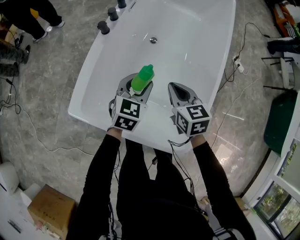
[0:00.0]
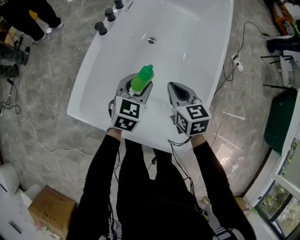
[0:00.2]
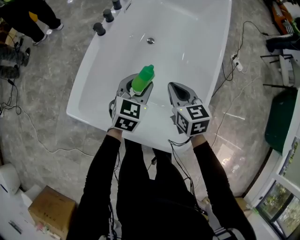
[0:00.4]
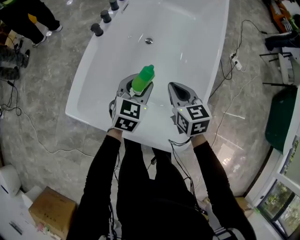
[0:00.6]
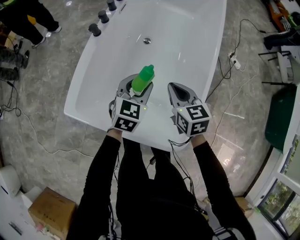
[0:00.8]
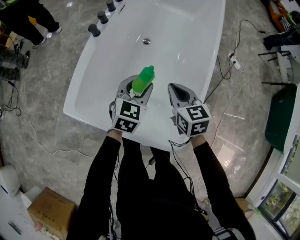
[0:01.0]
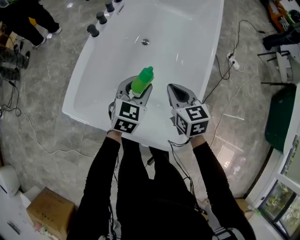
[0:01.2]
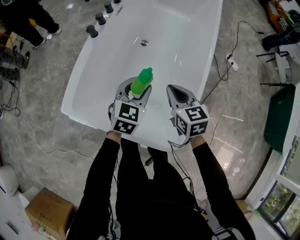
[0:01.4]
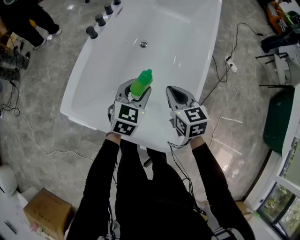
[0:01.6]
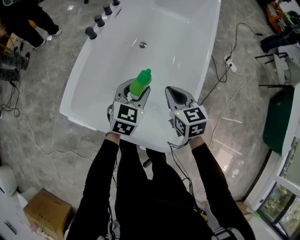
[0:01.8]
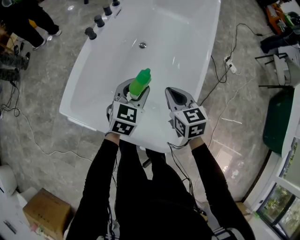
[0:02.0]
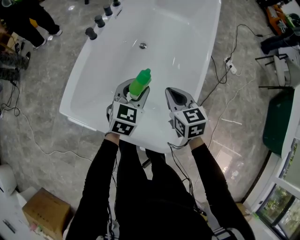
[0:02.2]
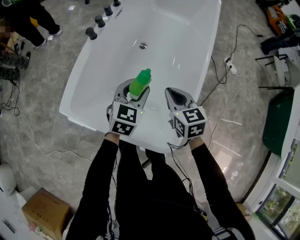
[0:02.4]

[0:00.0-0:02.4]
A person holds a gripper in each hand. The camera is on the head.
0:00.0 to 0:01.2: The two grippers go approximately 5 cm to the right.
0:01.2 to 0:02.4: The grippers stay close to where they were, moving slightly.

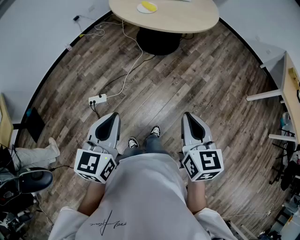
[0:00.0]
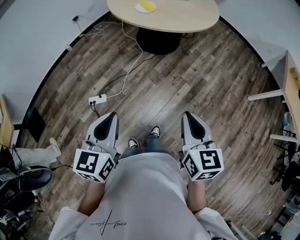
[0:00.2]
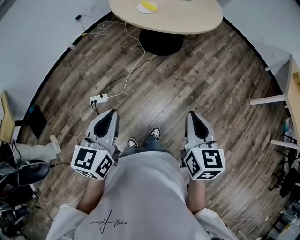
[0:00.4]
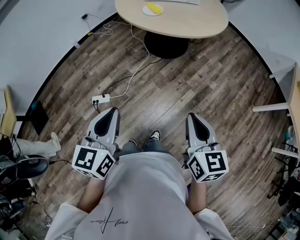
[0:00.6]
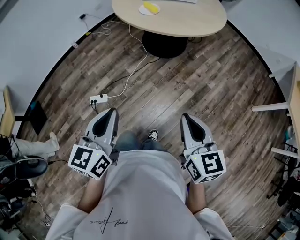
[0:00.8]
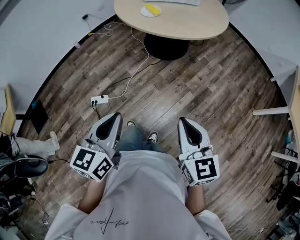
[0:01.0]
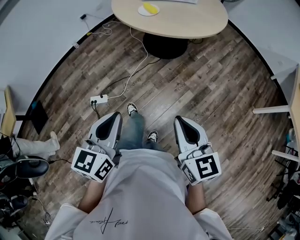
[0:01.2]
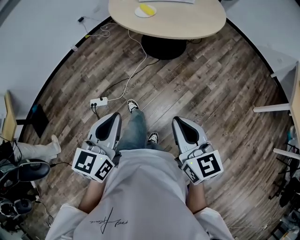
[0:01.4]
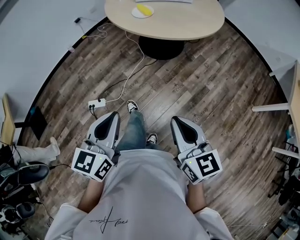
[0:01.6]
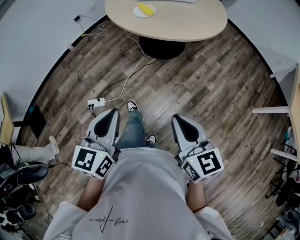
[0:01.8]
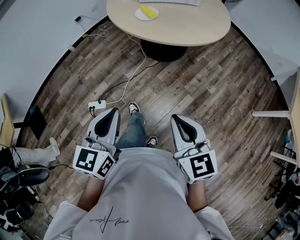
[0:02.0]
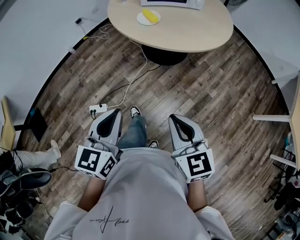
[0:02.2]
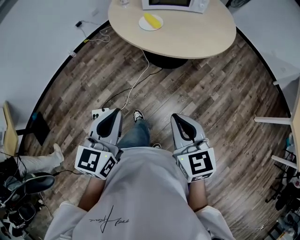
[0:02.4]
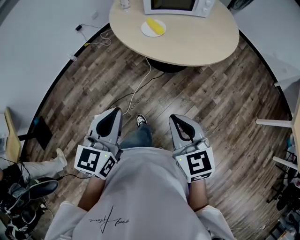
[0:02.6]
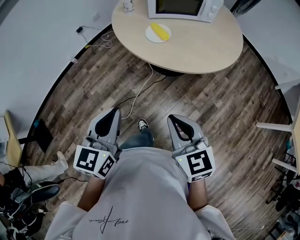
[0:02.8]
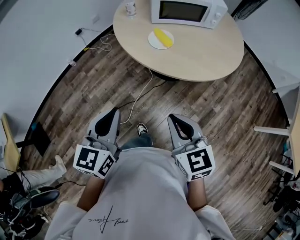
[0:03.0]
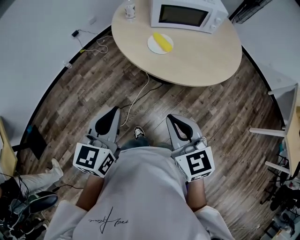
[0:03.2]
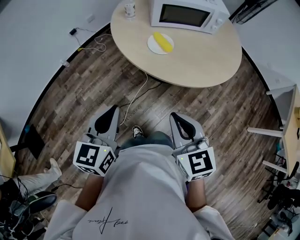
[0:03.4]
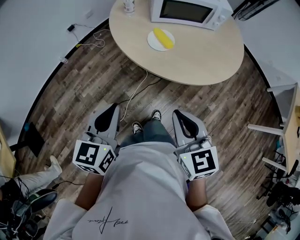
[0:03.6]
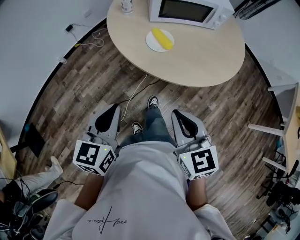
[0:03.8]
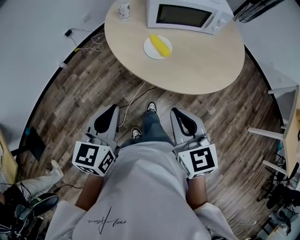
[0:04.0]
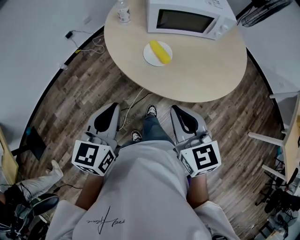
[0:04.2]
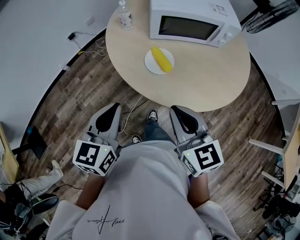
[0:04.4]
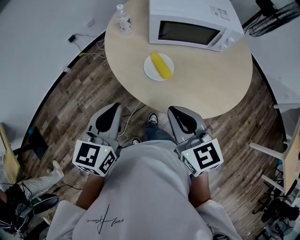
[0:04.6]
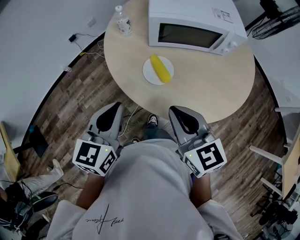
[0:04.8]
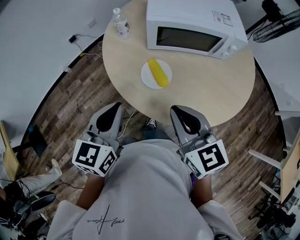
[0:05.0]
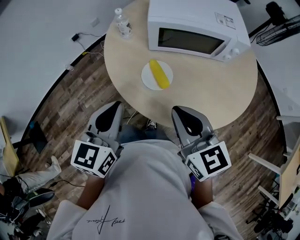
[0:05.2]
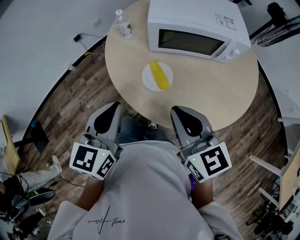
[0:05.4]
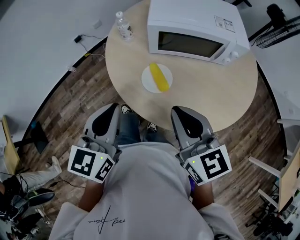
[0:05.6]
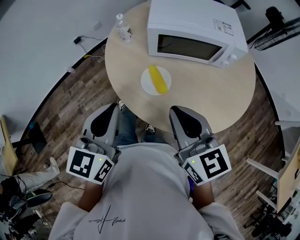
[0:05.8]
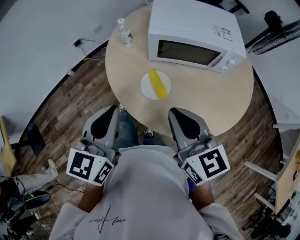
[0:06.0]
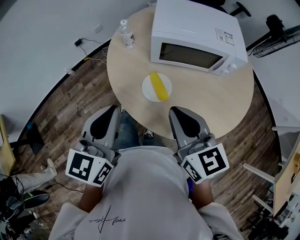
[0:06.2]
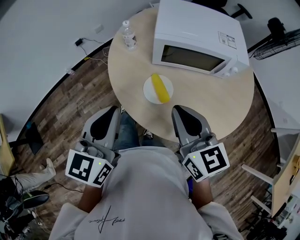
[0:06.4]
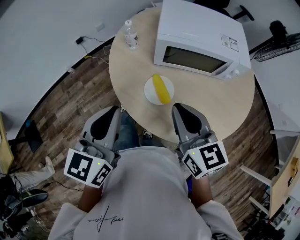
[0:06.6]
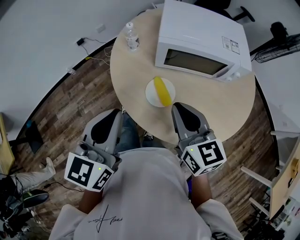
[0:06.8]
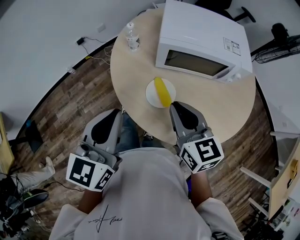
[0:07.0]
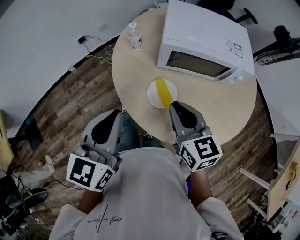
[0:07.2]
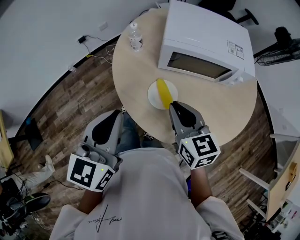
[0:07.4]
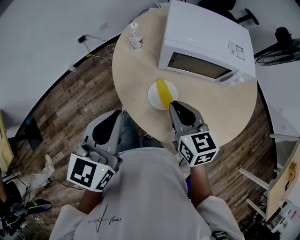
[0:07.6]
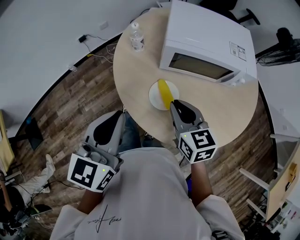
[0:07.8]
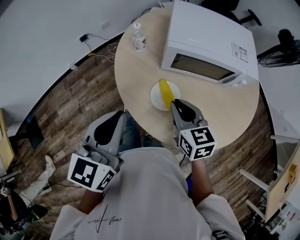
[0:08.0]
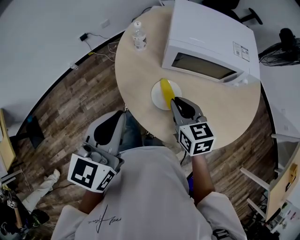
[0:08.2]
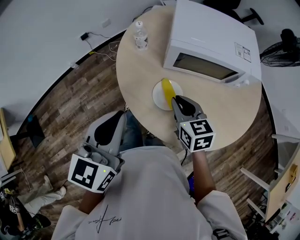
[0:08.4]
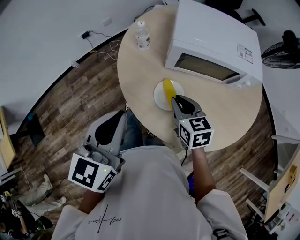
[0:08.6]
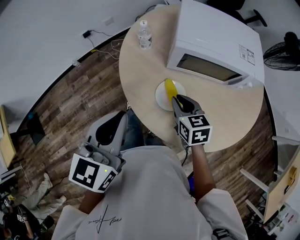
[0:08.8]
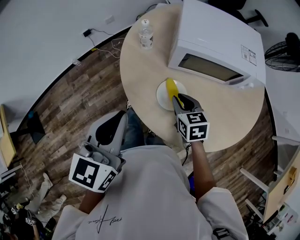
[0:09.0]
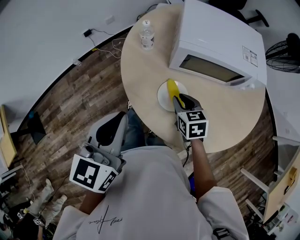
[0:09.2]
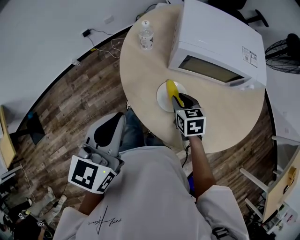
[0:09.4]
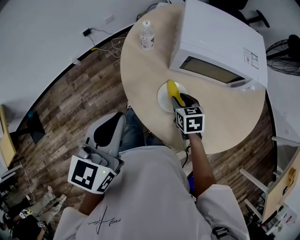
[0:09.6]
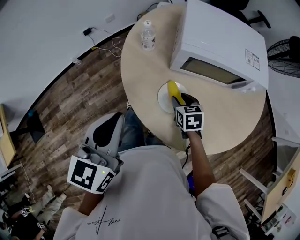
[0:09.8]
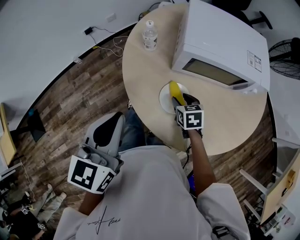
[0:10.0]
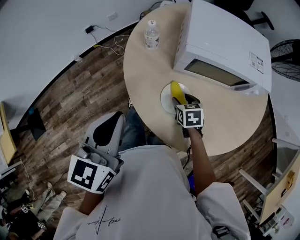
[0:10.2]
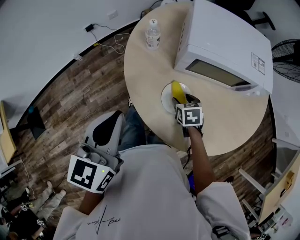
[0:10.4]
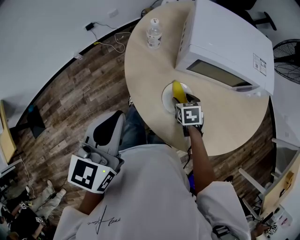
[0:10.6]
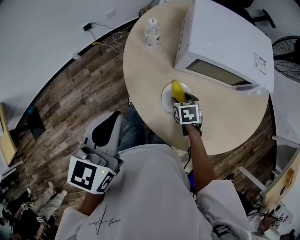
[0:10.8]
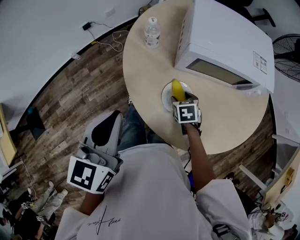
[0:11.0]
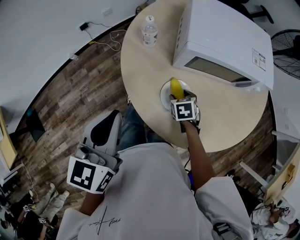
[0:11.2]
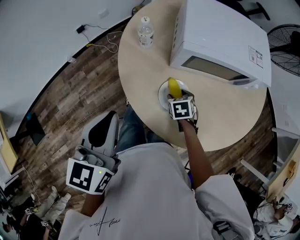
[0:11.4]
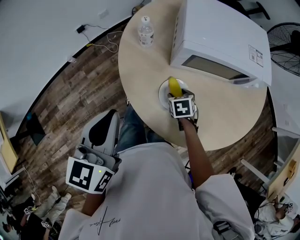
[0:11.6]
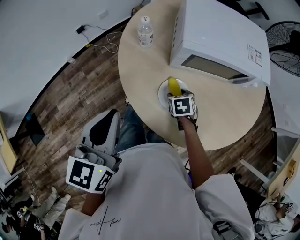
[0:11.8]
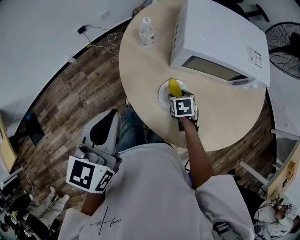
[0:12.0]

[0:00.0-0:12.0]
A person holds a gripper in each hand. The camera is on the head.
0:00.0 to 0:01.6: The two grippers go some 10 cm forward and to the right.
0:01.6 to 0:03.0: The left gripper travels forward by about 30 cm. Meanwhile the right gripper moves forward and to the left, some 35 cm.
0:03.0 to 0:04.4: Both grippers move forward, roughly 20 cm.
0:04.4 to 0:06.0: The right gripper is displaced forward and to the right by about 10 cm, while the left gripper travels forward, to the right and upward by about 10 cm.
0:06.0 to 0:07.6: The left gripper moves approximately 5 cm. Meanwhile the right gripper travels forward and downward by roughly 10 cm.
0:07.6 to 0:09.0: The right gripper goes approximately 10 cm downward.
0:09.0 to 0:10.4: The right gripper shifts approximately 10 cm downward, and opens.
0:10.4 to 0:12.0: The grippers move only a little.

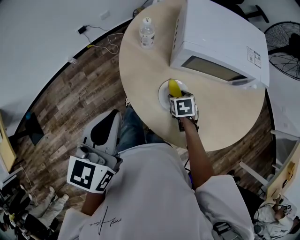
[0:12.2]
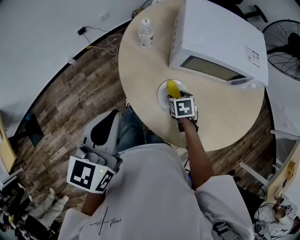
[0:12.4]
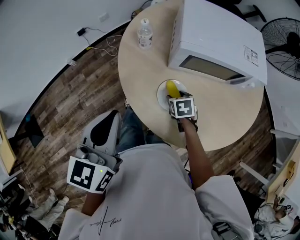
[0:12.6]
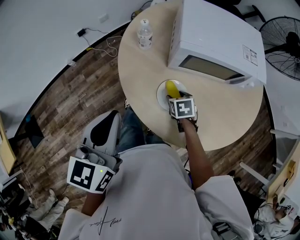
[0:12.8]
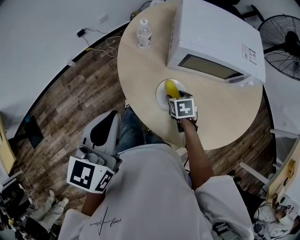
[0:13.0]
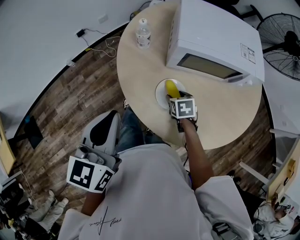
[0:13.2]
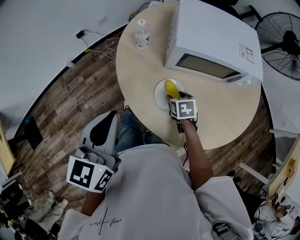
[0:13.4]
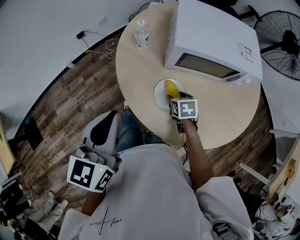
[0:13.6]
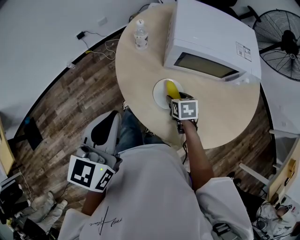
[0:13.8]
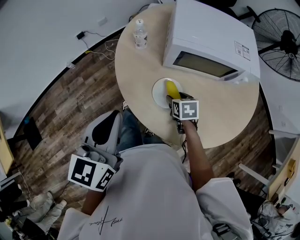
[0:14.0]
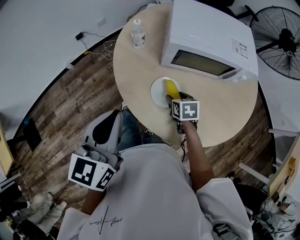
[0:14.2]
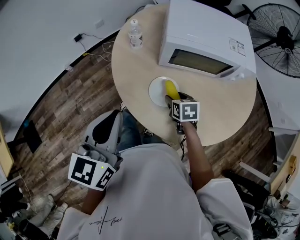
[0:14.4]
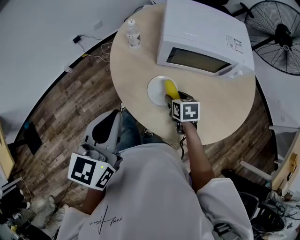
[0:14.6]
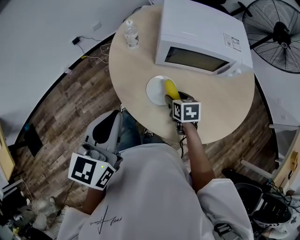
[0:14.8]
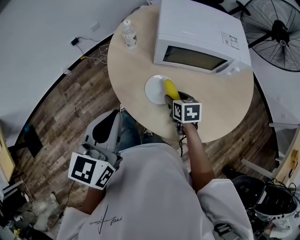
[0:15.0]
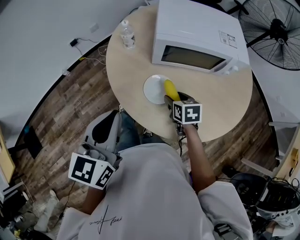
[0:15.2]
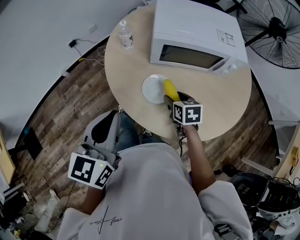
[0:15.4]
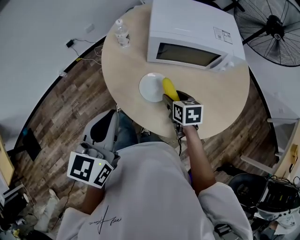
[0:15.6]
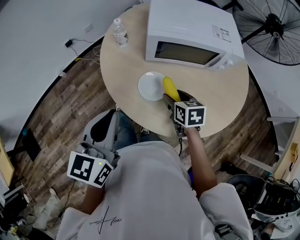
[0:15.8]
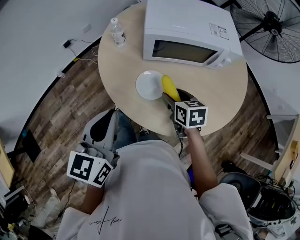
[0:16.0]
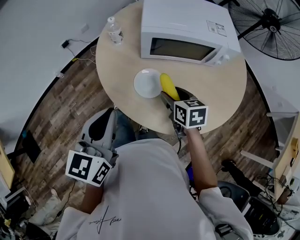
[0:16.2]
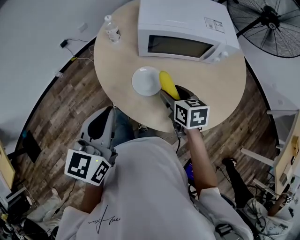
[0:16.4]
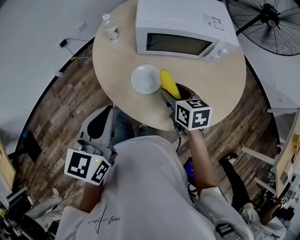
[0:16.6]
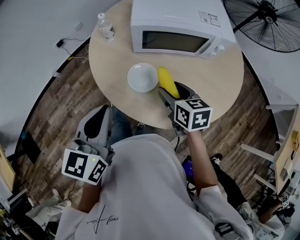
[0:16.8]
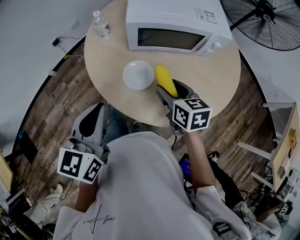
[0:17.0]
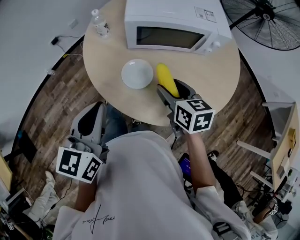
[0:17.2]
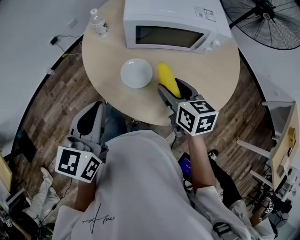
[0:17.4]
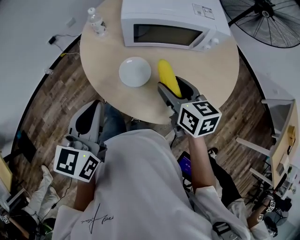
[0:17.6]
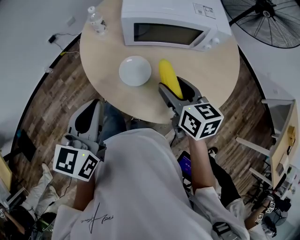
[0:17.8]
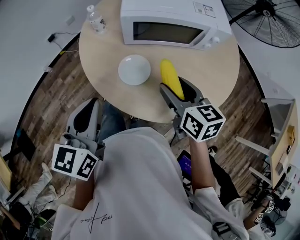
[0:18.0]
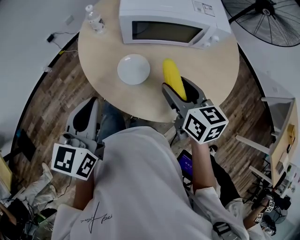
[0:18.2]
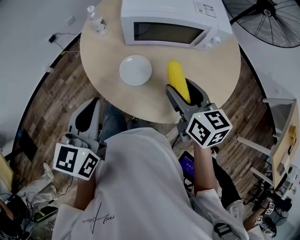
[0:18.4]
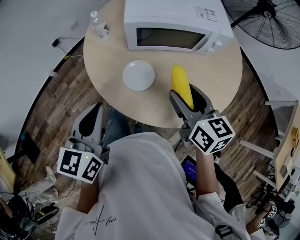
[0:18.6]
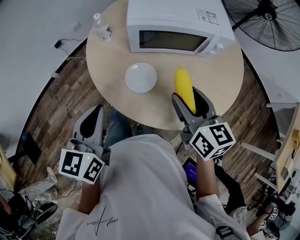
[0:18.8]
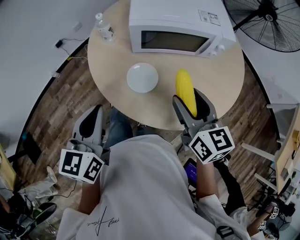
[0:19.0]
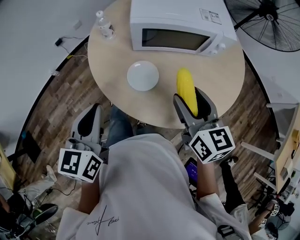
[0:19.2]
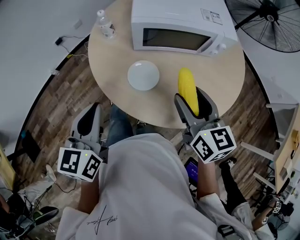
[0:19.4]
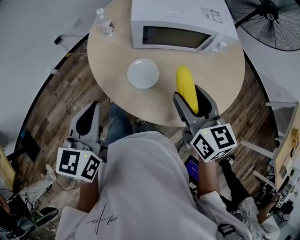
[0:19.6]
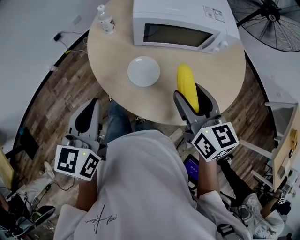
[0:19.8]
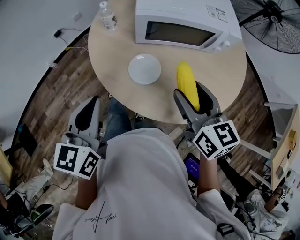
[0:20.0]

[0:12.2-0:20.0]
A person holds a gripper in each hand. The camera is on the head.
0:12.2 to 0:13.8: There are only small adjustments of the grippers.
0:13.8 to 0:15.4: The right gripper changes place by some 5 cm. The left gripper moves some 5 cm.
0:15.4 to 0:16.8: The right gripper goes some 10 cm upward.
0:16.8 to 0:18.4: The right gripper is displaced upward by roughly 5 cm.
0:18.4 to 0:20.0: The grippers stay close to where they were, moving slightly.

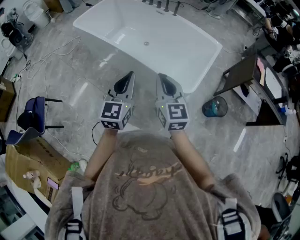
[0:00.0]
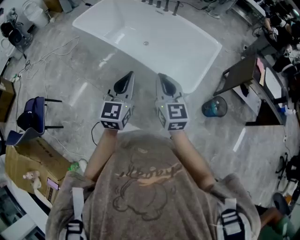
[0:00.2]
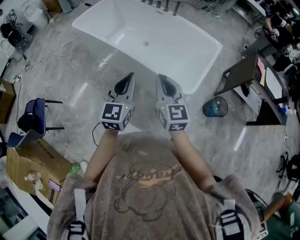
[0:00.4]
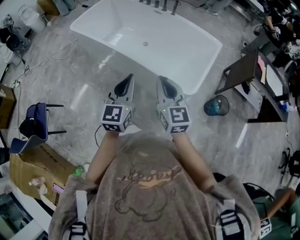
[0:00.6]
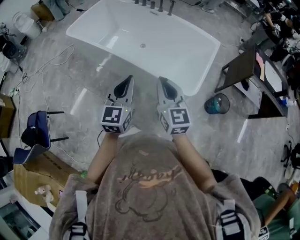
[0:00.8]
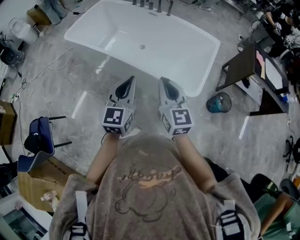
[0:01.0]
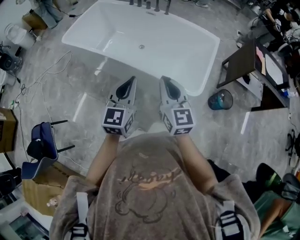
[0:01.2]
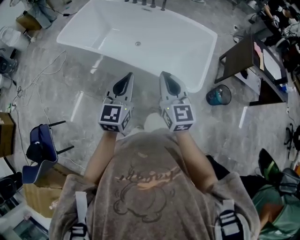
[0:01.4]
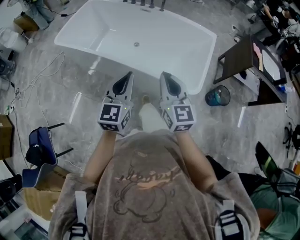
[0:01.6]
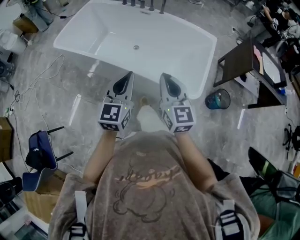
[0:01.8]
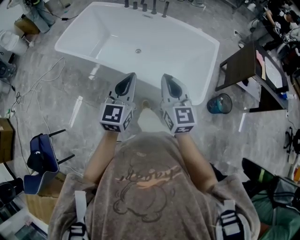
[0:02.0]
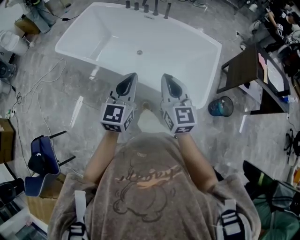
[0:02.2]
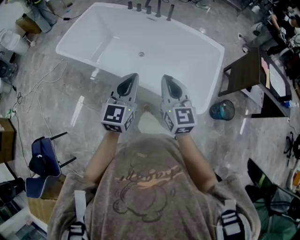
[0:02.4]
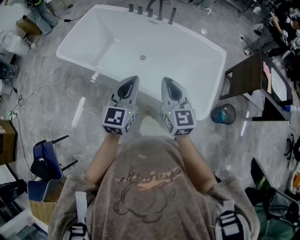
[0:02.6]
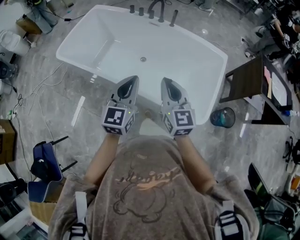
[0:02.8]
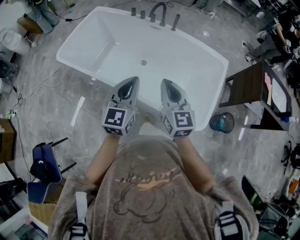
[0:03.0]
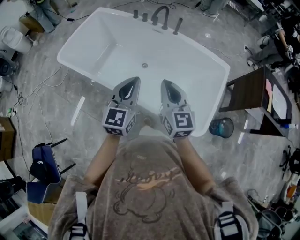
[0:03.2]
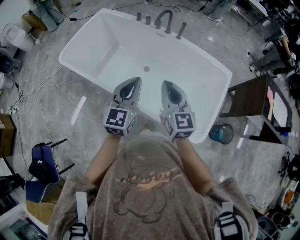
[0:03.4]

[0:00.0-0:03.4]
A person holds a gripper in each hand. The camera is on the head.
0:00.0 to 0:01.6: The grippers both shift forward and to the left by roughly 15 cm.
0:01.6 to 0:03.4: The two grippers go roughly 30 cm forward.
